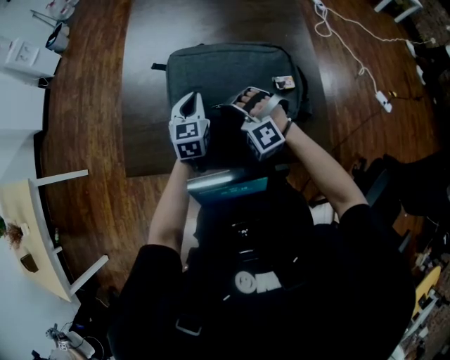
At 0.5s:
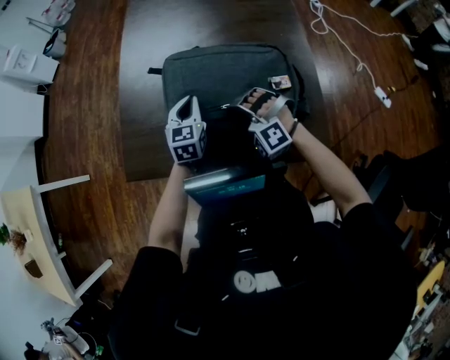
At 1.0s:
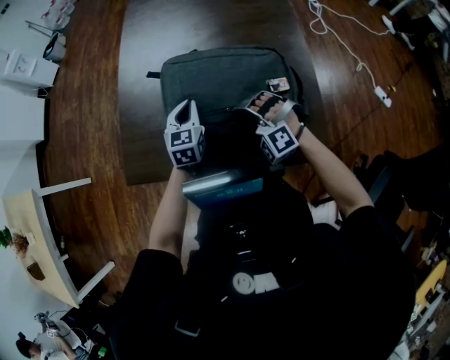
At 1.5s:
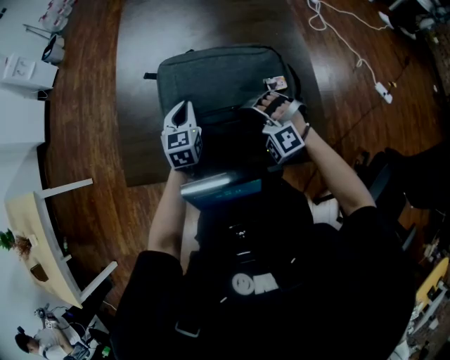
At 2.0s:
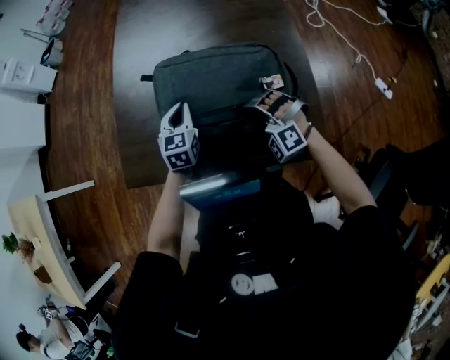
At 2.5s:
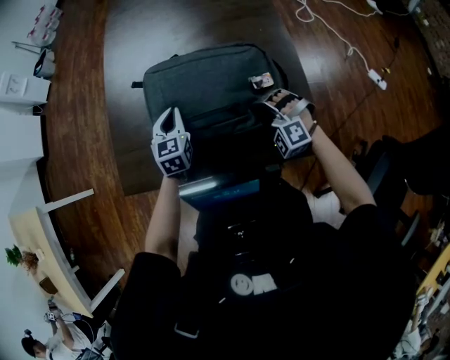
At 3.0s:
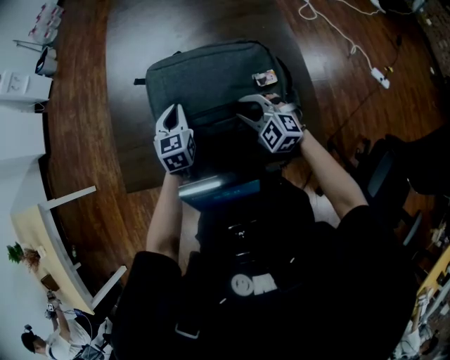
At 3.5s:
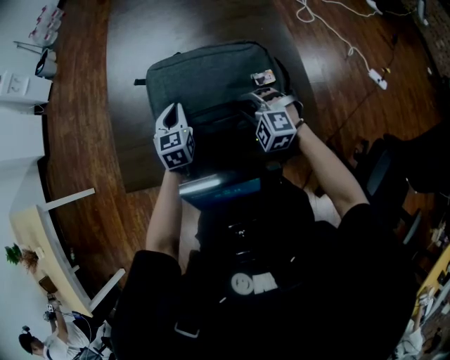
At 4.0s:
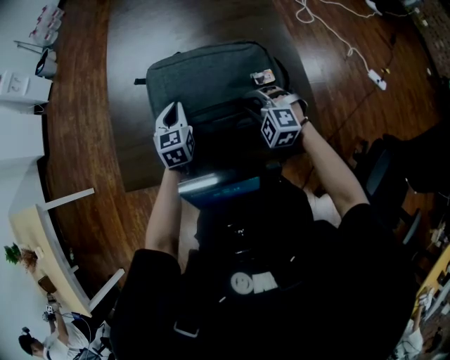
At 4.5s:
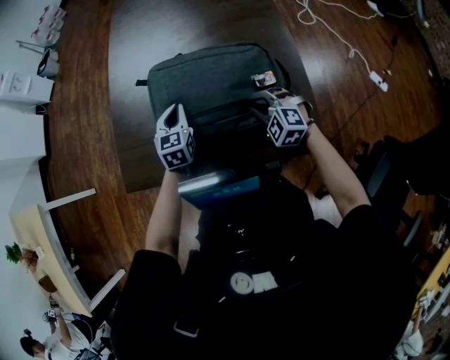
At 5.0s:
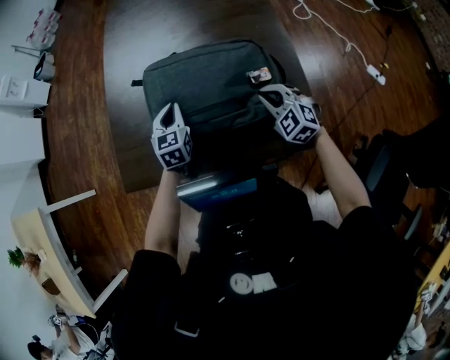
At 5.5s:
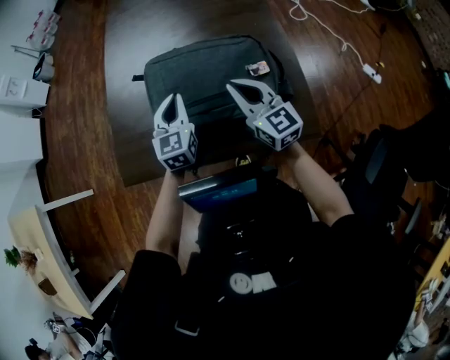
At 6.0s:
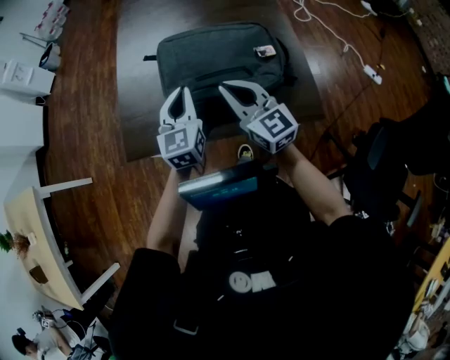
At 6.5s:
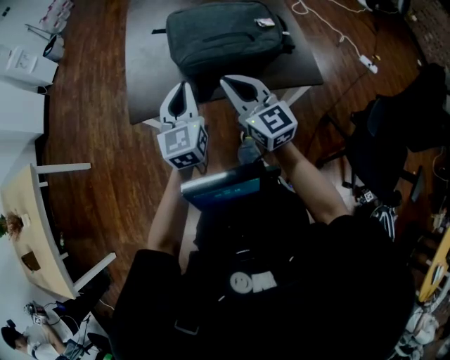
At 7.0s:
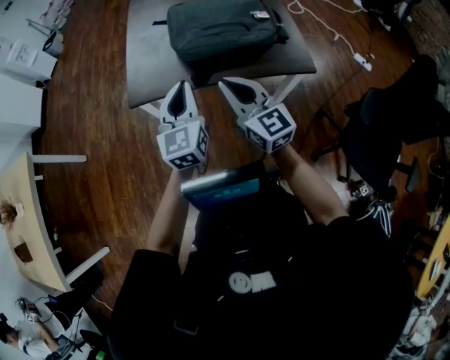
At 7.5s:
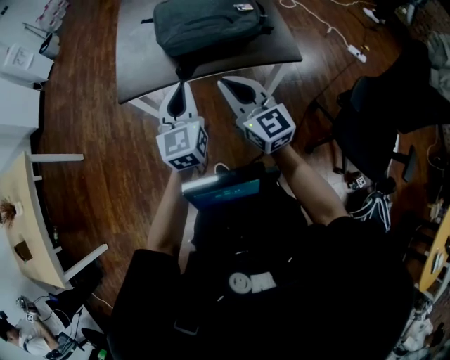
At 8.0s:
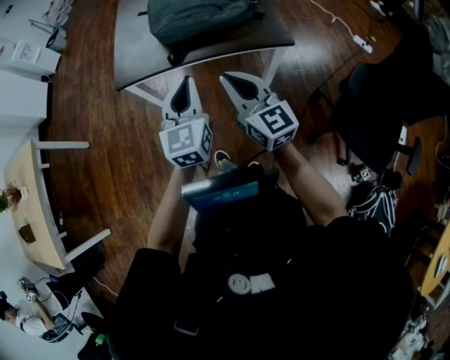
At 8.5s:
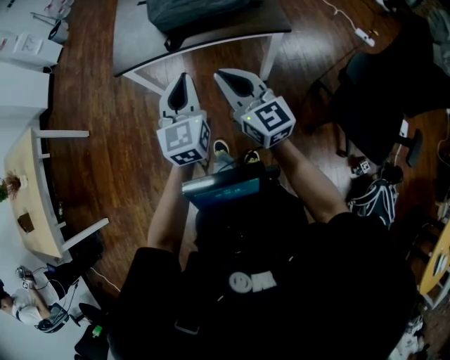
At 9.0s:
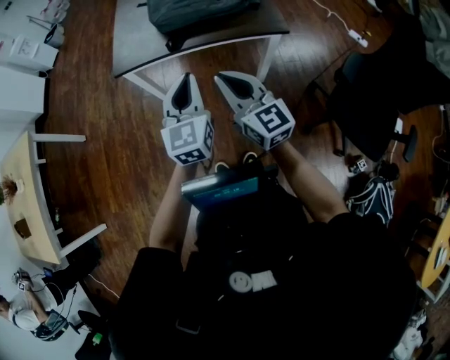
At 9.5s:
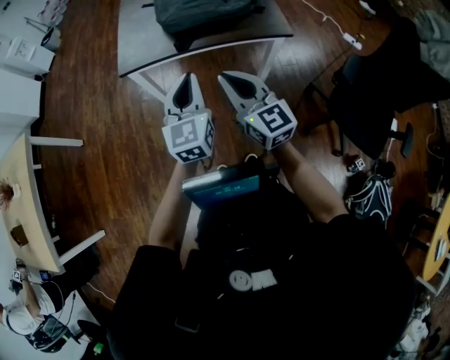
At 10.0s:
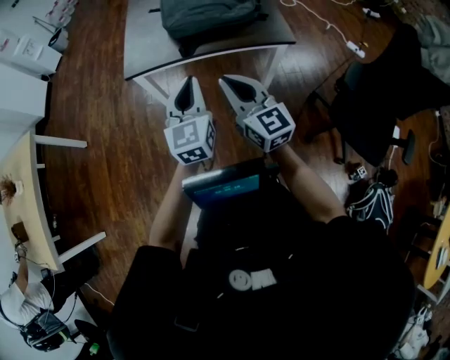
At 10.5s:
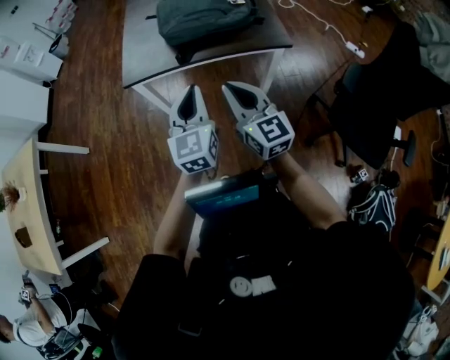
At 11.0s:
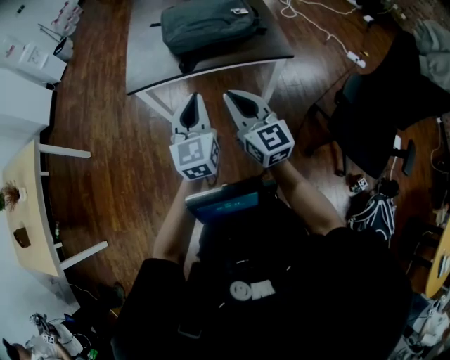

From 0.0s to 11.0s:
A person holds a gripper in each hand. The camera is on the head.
From 0.0s to 2.0s: The right gripper heads to the right, covering some 10 cm.
From 2.0s to 3.5s: The right gripper swivels about 30 degrees.
From 3.5s to 5.5s: The left gripper heads upward, covering about 5 cm. The right gripper heads upward, covering about 15 cm, and rolls clockwise, seen from behind, by some 50 degrees.
From 5.5s to 7.5s: The right gripper goes some 35 cm backward and to the left. Meanwhile the left gripper travels backward by some 35 cm.
From 7.5s to 9.0s: The grippers both shift backward by some 15 cm.
From 9.0s to 11.0s: There are only small adjustments of the grippers.

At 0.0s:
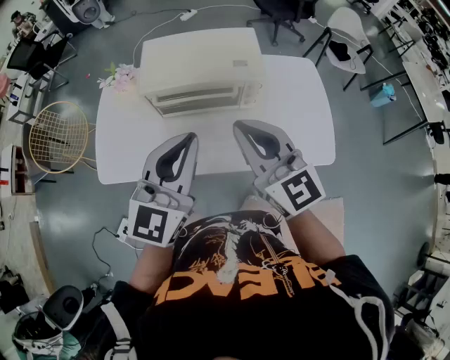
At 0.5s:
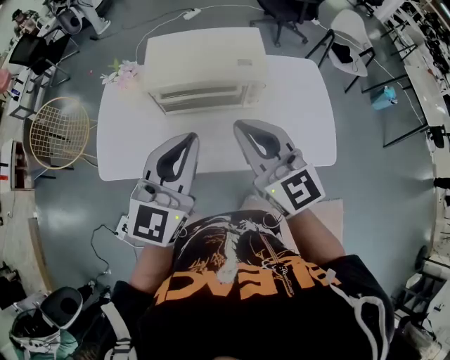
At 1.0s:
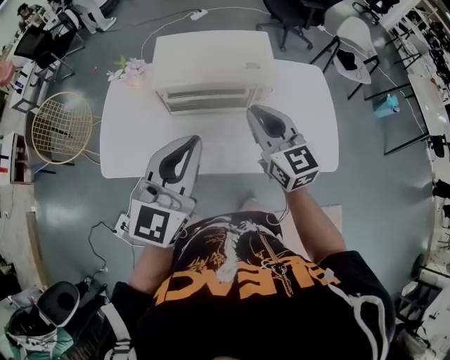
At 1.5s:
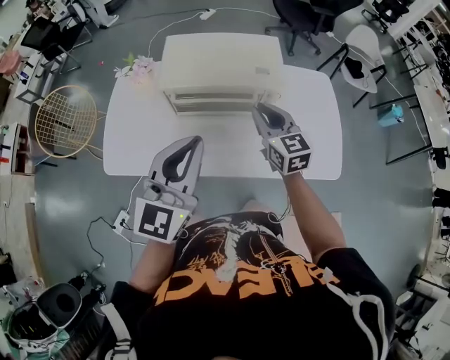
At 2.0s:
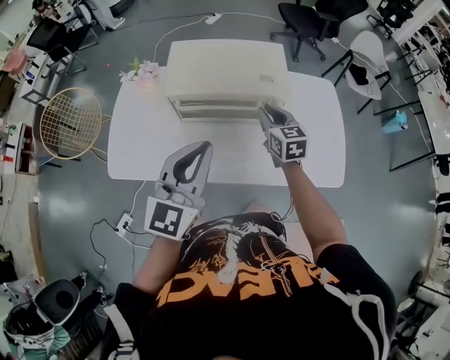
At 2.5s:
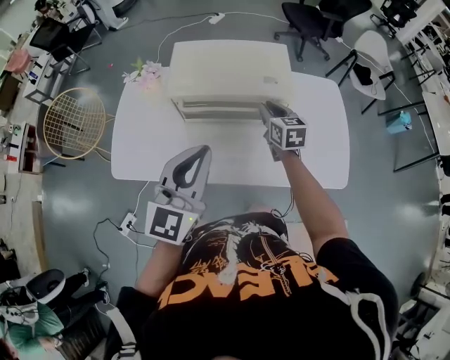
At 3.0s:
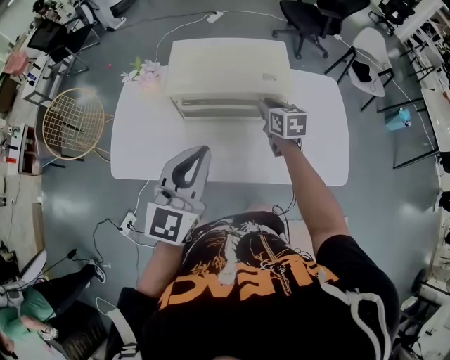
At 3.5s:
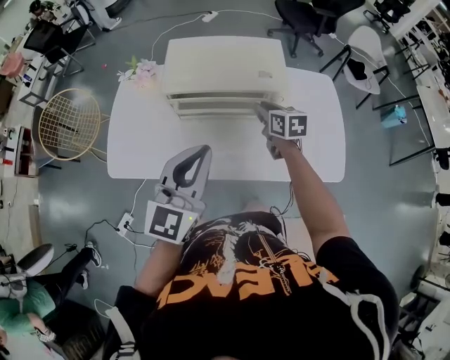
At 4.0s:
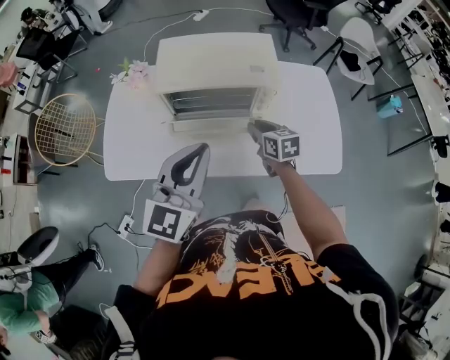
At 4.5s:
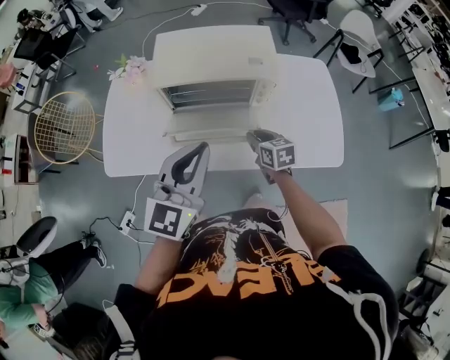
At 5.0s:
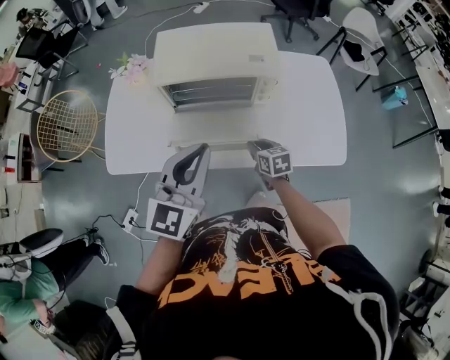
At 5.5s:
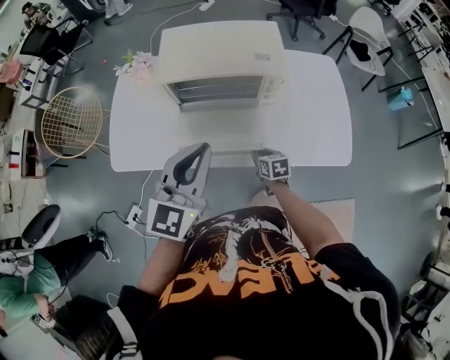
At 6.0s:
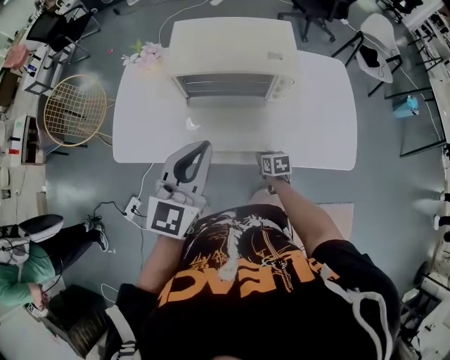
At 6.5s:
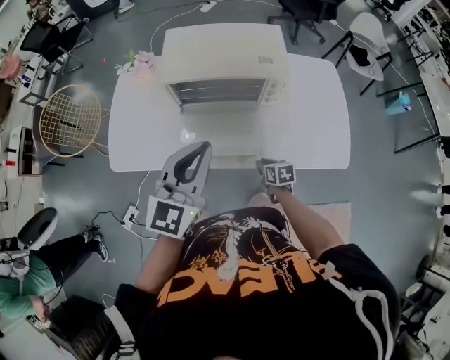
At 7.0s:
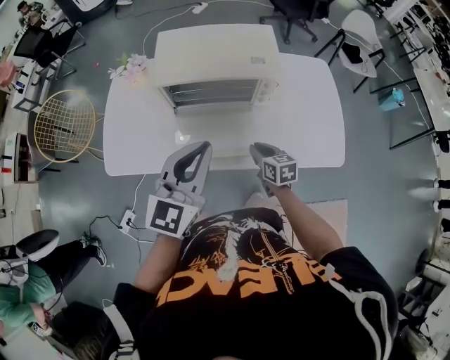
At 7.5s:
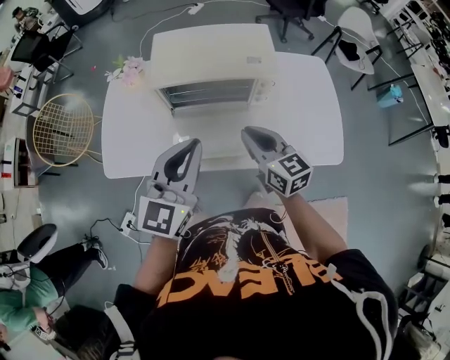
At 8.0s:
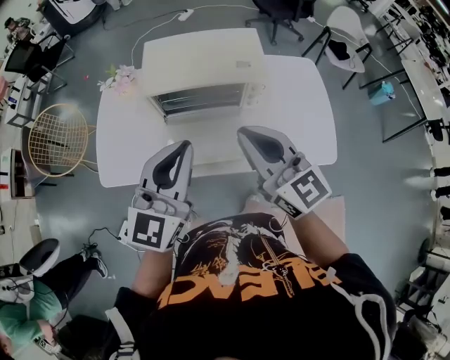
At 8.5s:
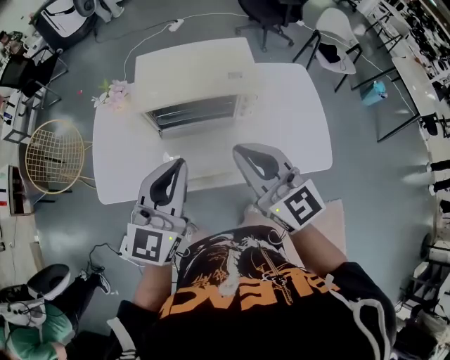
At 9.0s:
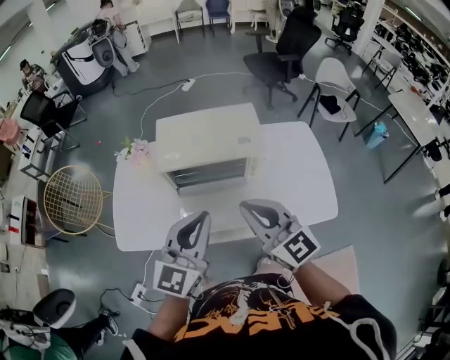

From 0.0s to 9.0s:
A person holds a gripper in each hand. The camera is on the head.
From 0.0s to 2.0s: The right gripper heads downward and forward, covering some 25 cm, and changes its angle by some 30 degrees.
From 2.0s to 4.5s: The right gripper is displaced downward and backward by some 15 cm, and rotates approximately 20 degrees.
From 4.5s to 7.0s: The right gripper travels downward and back again, some 15 cm each way.
From 7.0s to 9.0s: The left gripper goes some 5 cm upward, while the right gripper shifts about 35 cm upward, and tips its fingers upward by roughly 40 degrees.

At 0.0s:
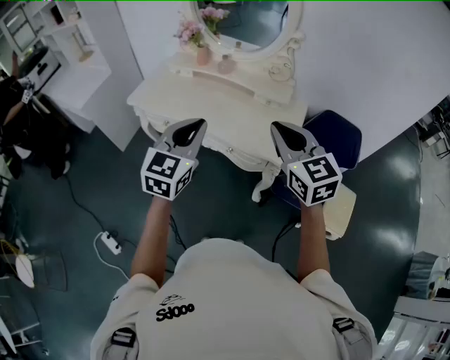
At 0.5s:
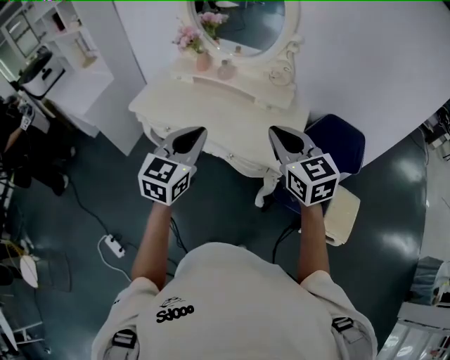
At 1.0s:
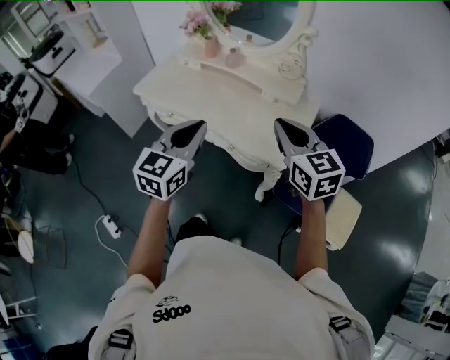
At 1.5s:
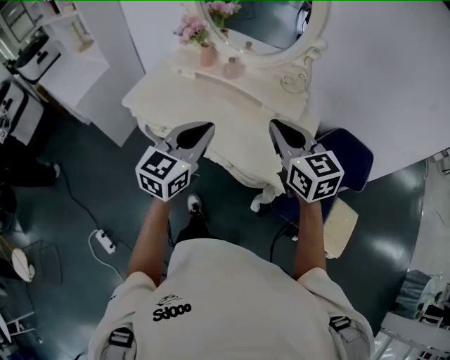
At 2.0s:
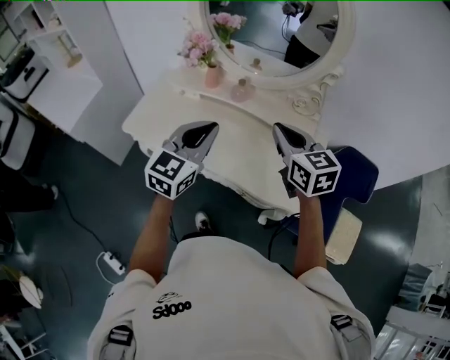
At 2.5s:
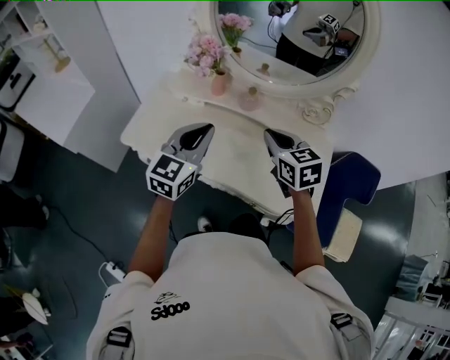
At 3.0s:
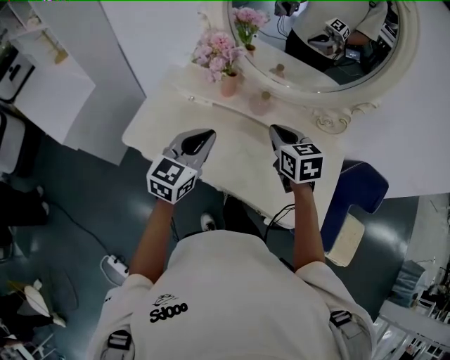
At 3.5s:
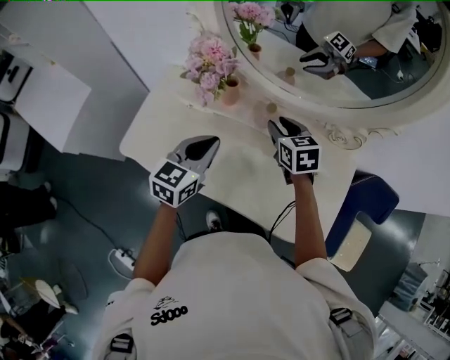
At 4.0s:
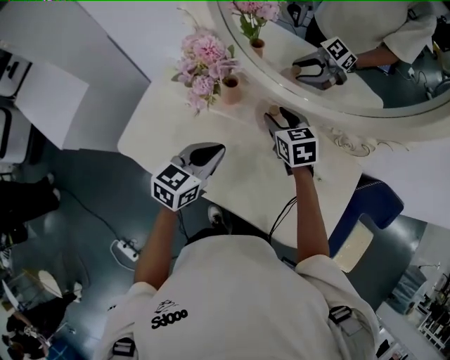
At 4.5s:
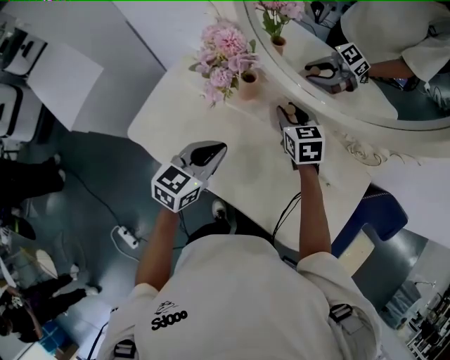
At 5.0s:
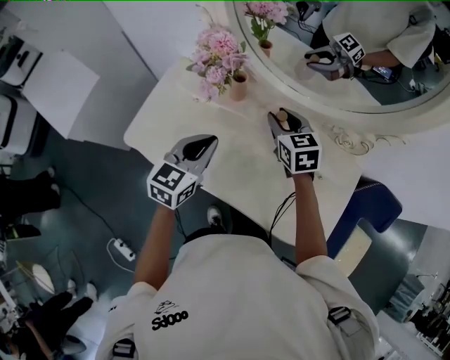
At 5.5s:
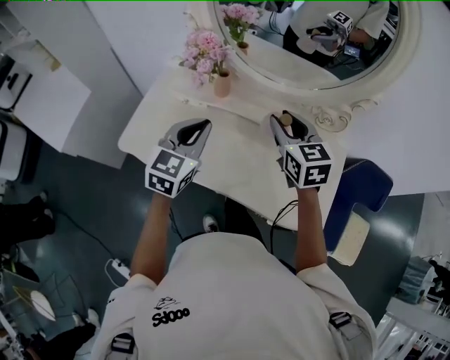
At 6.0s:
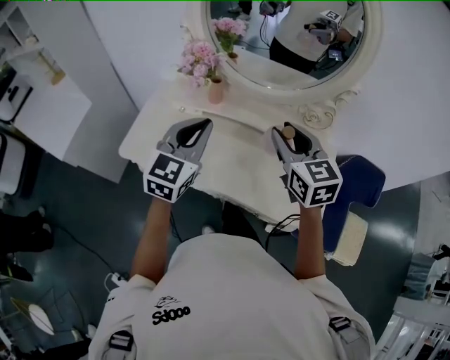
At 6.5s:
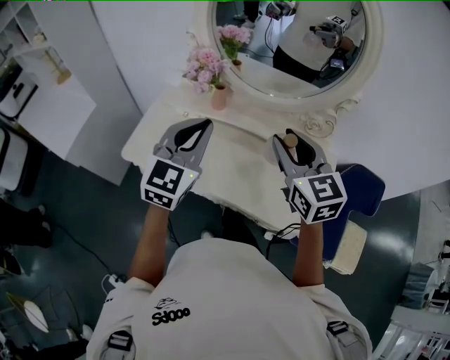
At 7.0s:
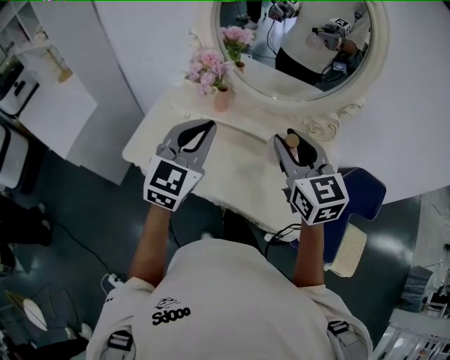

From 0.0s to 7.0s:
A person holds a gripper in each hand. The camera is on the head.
From 0.0s to 2.0s: Both grippers move forward, approximately 25 cm.
From 2.0s to 3.5s: The right gripper goes some 30 cm forward and downward, rotates roughly 20 degrees, and opens up; the left gripper heads forward, downward and to the left, covering about 25 cm.
From 5.0s to 7.0s: The left gripper goes about 15 cm upward and backward, and rotates some 30 degrees; the right gripper travels backward and upward by approximately 30 cm, and changes its angle by roughly 20 degrees.
